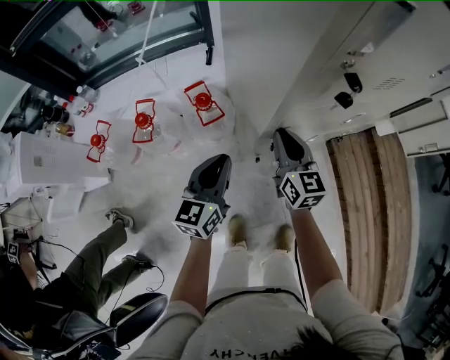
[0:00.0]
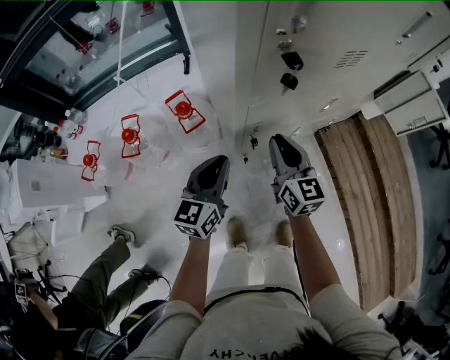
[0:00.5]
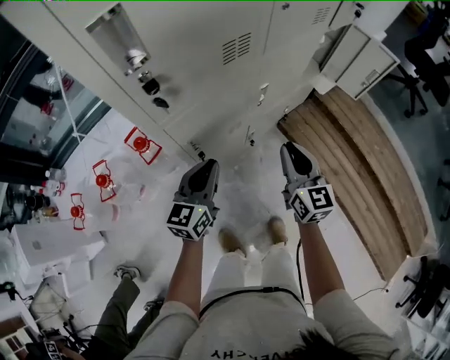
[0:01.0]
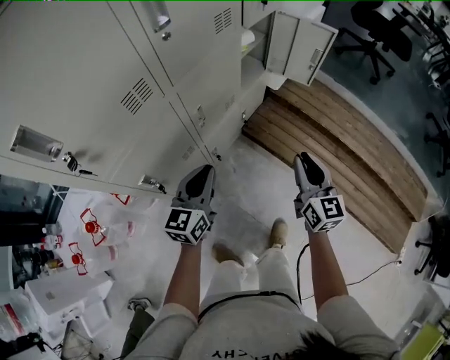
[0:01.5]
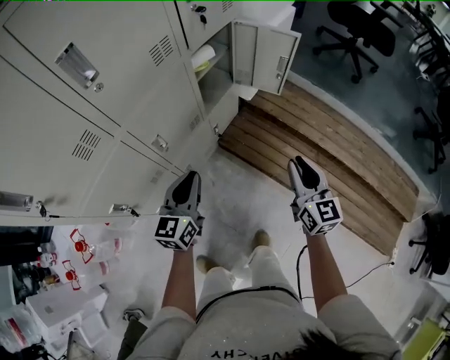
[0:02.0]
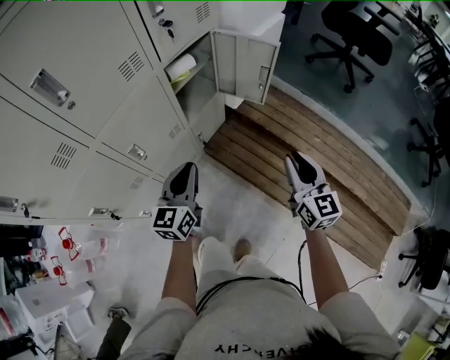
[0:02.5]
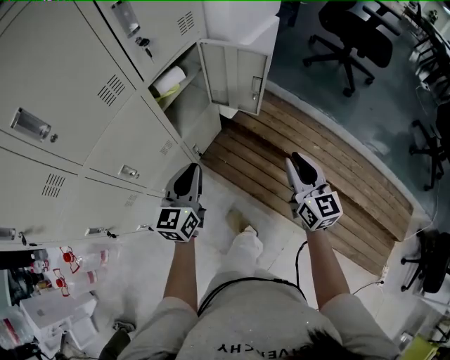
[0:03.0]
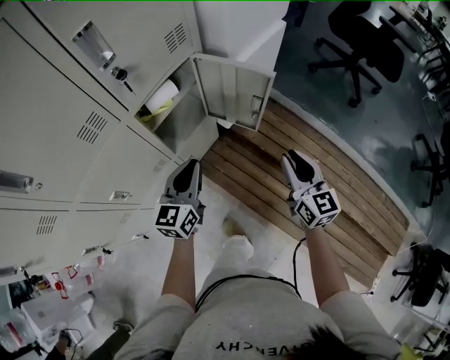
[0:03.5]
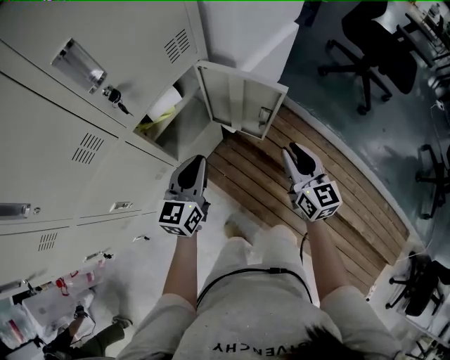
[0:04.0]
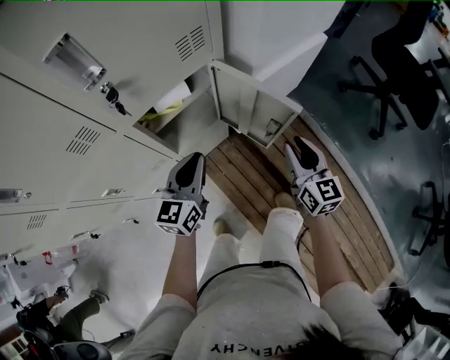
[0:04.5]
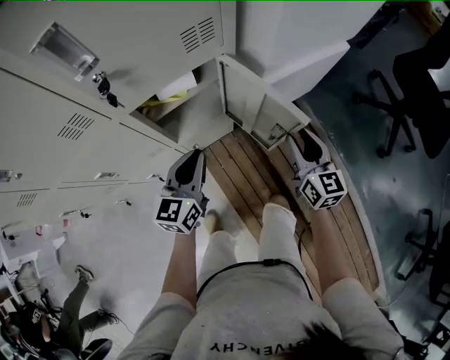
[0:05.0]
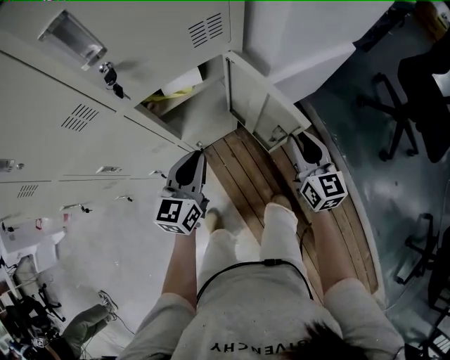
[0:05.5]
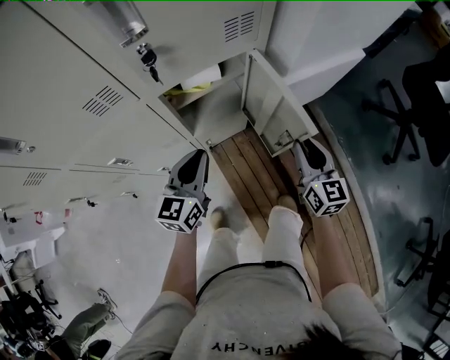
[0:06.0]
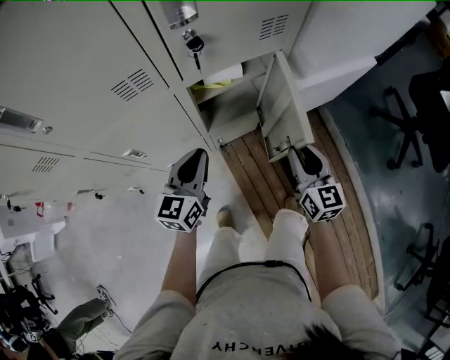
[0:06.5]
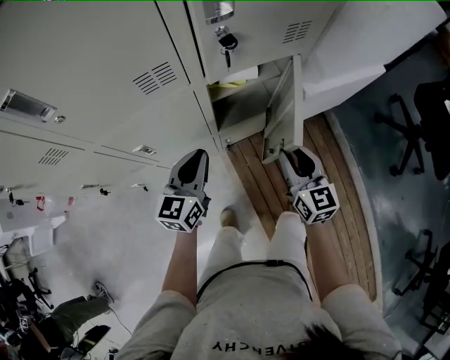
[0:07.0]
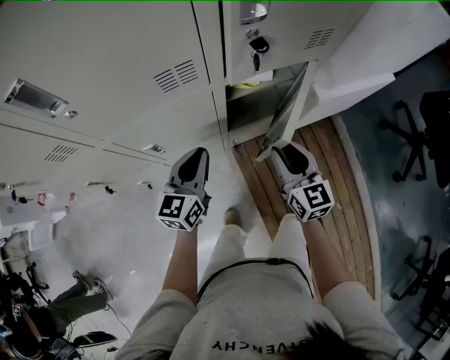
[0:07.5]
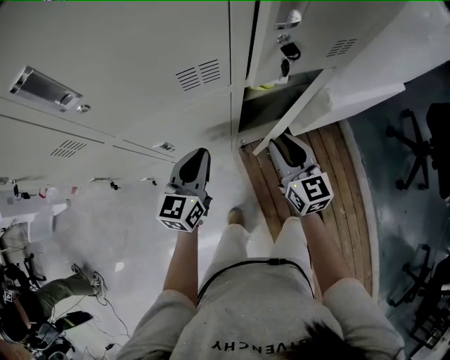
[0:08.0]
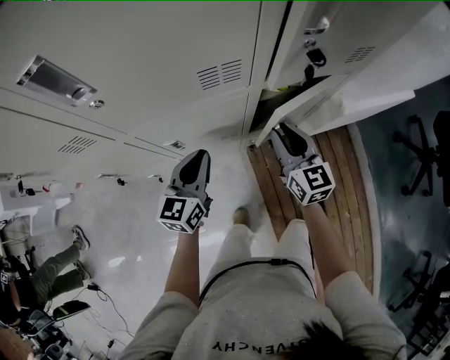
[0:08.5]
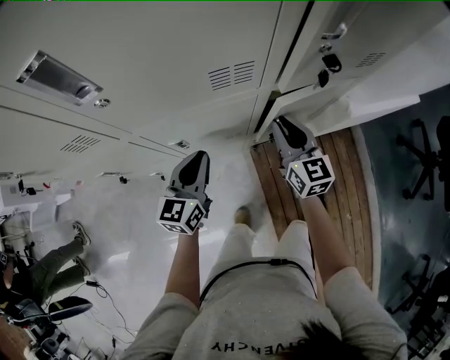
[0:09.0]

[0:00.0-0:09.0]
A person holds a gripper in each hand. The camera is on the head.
0:00.0 to 0:02.0: Both grippers are carried approximately 60 cm. The left gripper changes its angle by about 30 degrees. The right gripper swivels about 40 degrees.
0:02.0 to 0:04.5: The left gripper travels forward and to the right by approximately 35 cm. Meanwhile the right gripper heads forward, covering approximately 40 cm.
0:04.5 to 0:07.0: Both grippers travel together to the left, approximately 15 cm.
0:07.0 to 0:09.0: The right gripper is displaced to the left and forward by approximately 20 cm; the left gripper is displaced to the left by approximately 10 cm.

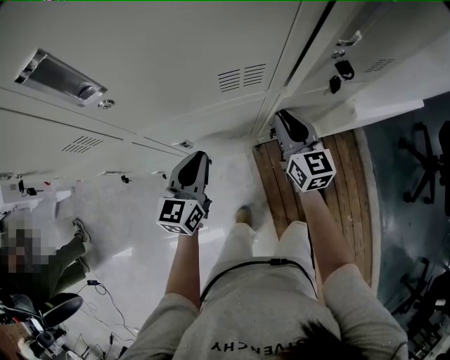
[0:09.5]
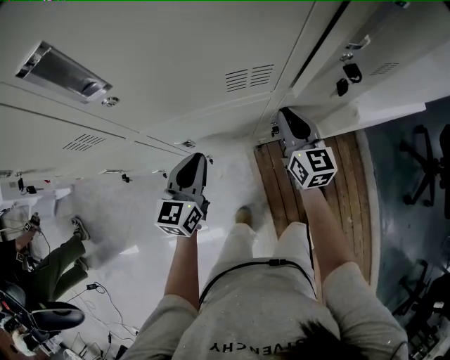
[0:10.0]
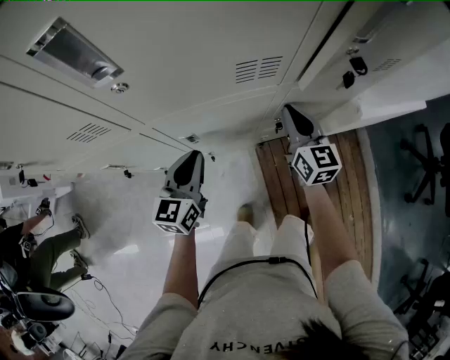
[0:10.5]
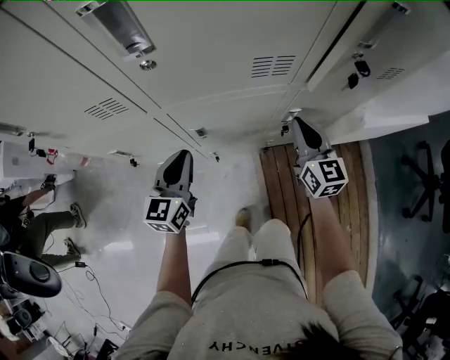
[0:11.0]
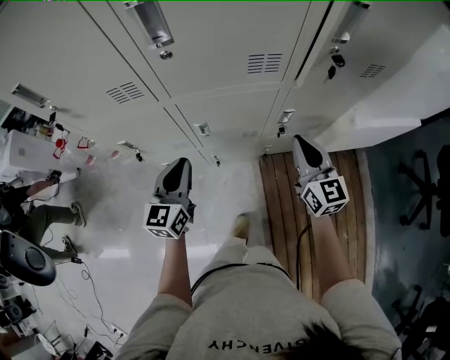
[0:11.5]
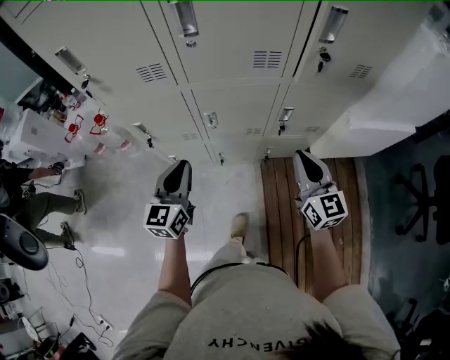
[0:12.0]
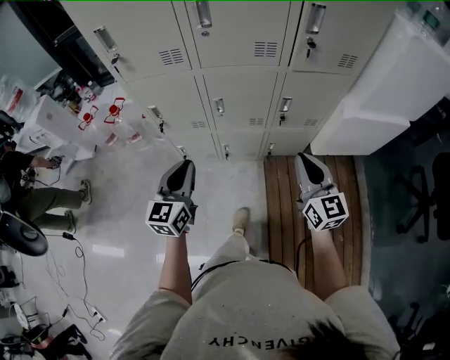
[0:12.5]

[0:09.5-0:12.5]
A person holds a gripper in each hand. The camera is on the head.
0:09.5 to 0:11.0: The left gripper travels to the left by approximately 10 cm.
0:11.0 to 0:12.5: The right gripper goes approximately 30 cm backward. The left gripper shifts roughly 30 cm backward and upward.

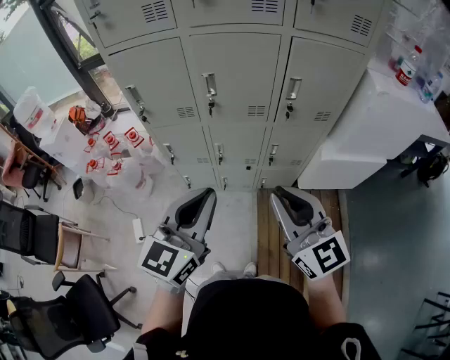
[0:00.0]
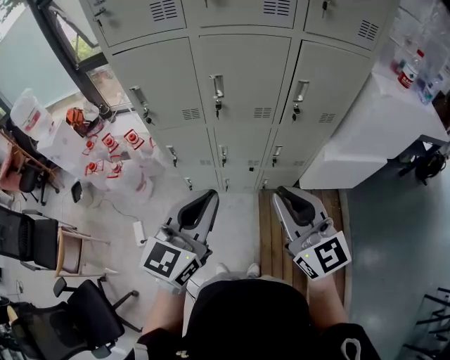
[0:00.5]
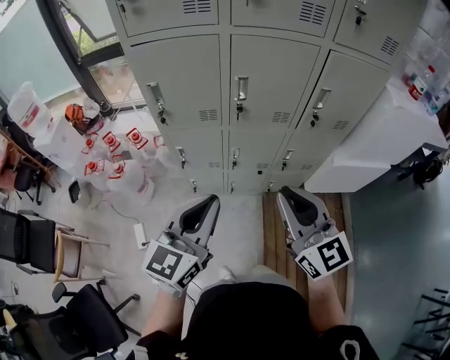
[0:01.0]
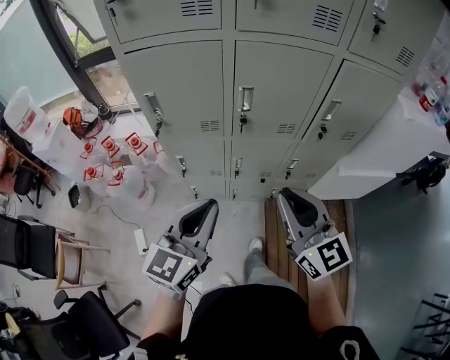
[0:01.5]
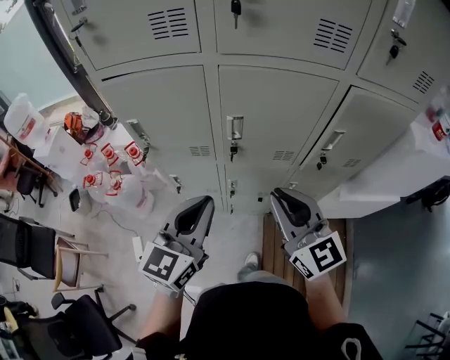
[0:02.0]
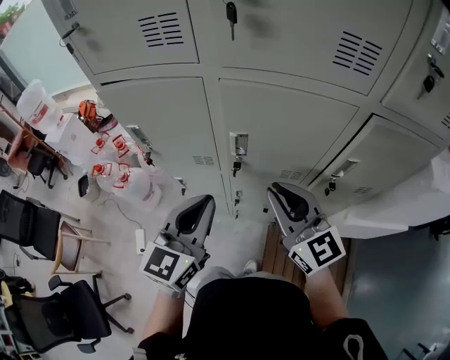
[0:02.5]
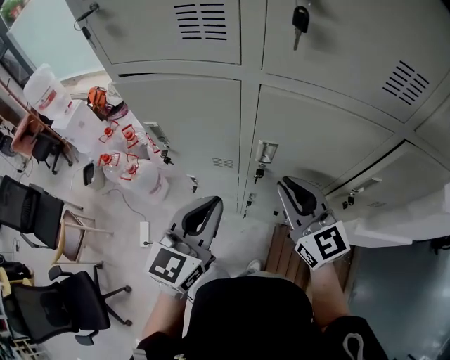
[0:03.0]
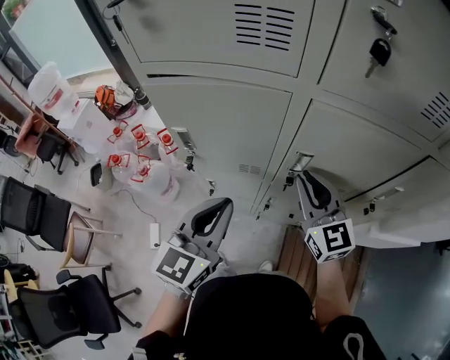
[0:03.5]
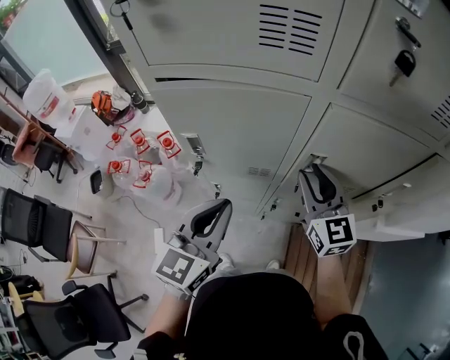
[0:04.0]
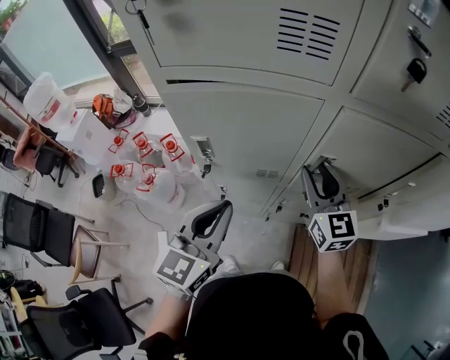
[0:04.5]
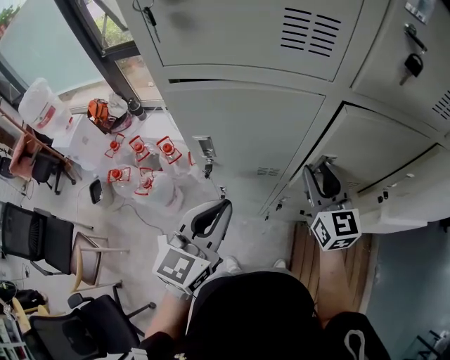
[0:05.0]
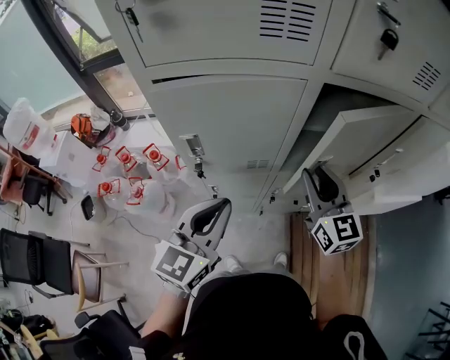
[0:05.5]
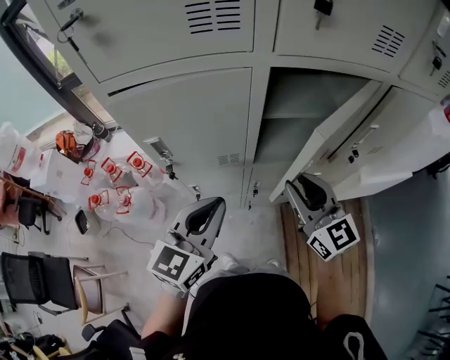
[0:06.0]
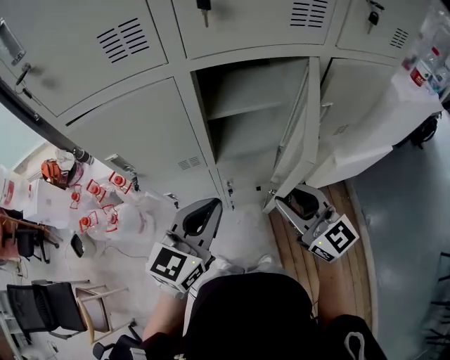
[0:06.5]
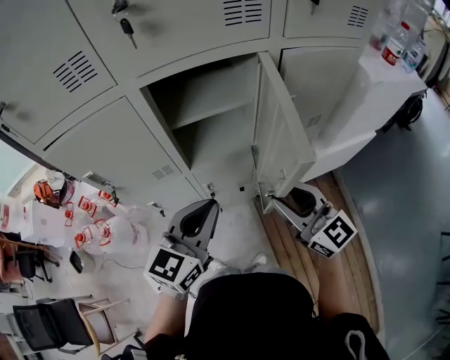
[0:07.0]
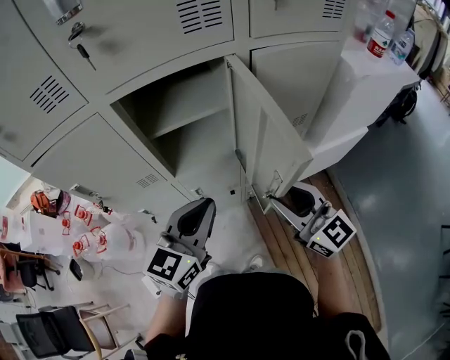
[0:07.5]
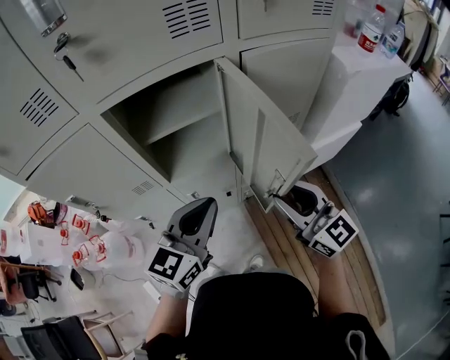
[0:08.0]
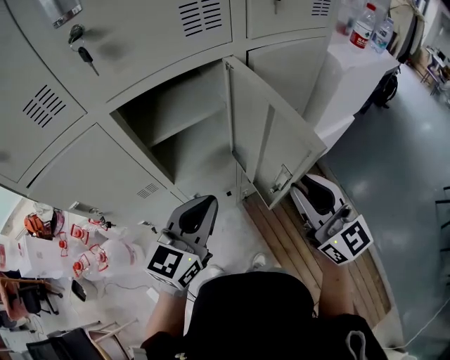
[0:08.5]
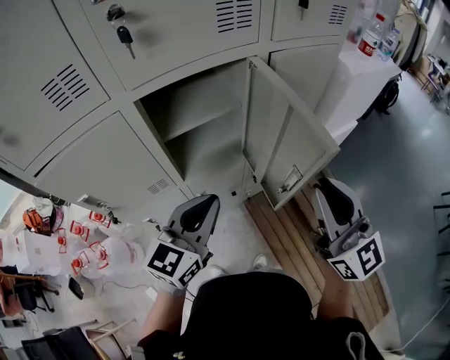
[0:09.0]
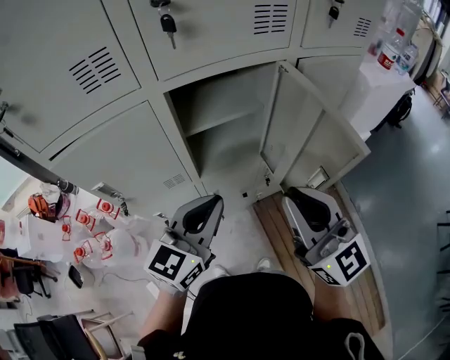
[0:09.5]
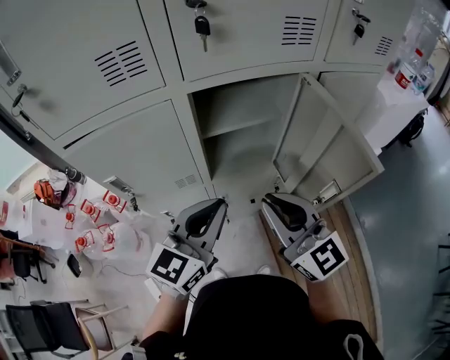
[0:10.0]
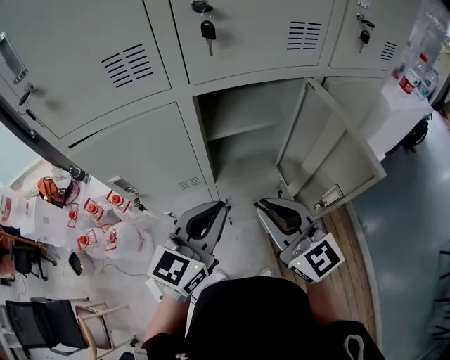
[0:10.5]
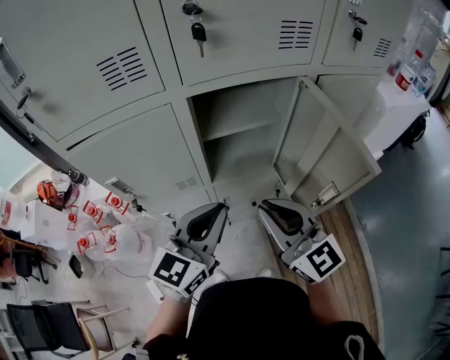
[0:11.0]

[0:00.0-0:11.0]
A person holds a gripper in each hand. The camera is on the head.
0:00.0 to 0:02.0: The right gripper is displaced forward by some 20 cm. The left gripper heads forward and to the left, covering roughly 20 cm.
0:02.0 to 0:03.5: The left gripper shifts roughly 10 cm forward and to the left, while the right gripper shifts about 15 cm forward.
0:03.5 to 0:05.5: The left gripper travels to the left by approximately 5 cm.
0:05.5 to 0:07.5: The right gripper heads to the right and backward, covering about 25 cm, while the left gripper goes some 25 cm to the right.
0:07.5 to 0:09.0: The left gripper is displaced to the left by approximately 5 cm. Meanwhile the right gripper is displaced upward by some 10 cm, and rotates about 30 degrees.
0:09.0 to 0:11.0: The right gripper heads to the left, covering some 15 cm, and turns by about 20 degrees. The left gripper travels to the left by some 5 cm.

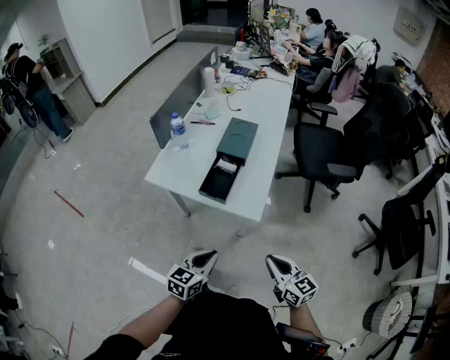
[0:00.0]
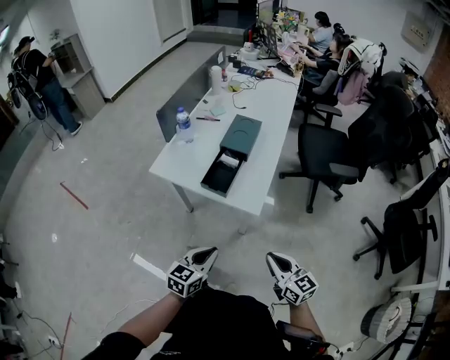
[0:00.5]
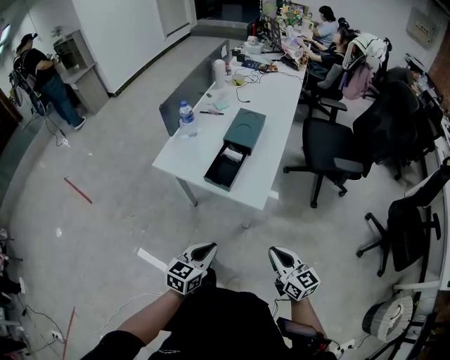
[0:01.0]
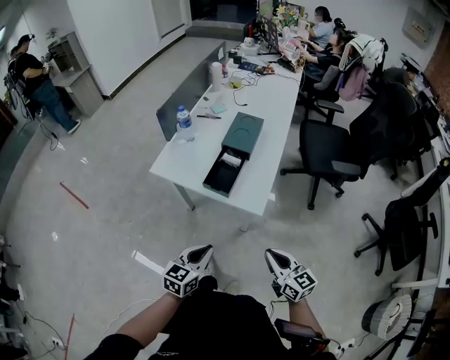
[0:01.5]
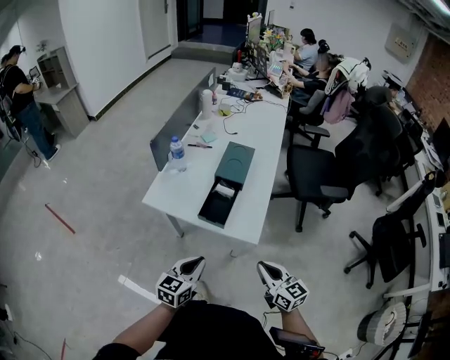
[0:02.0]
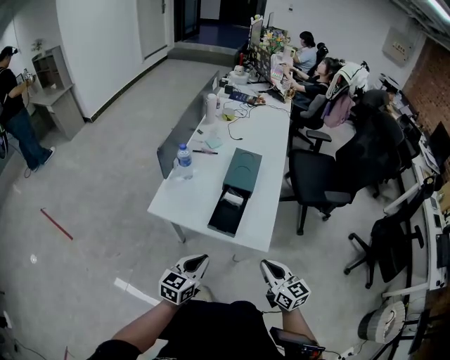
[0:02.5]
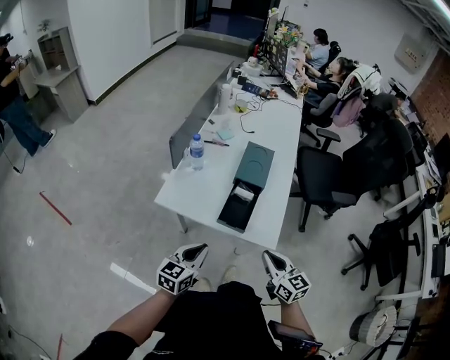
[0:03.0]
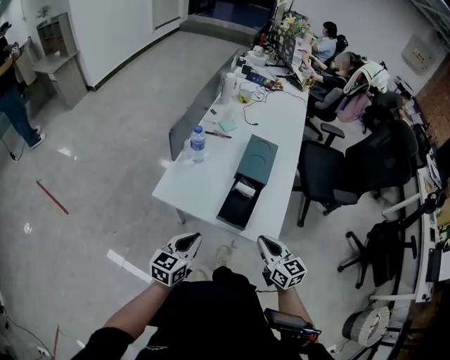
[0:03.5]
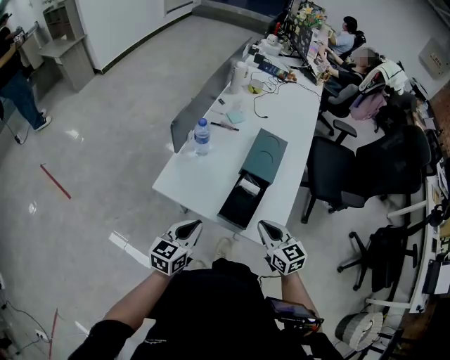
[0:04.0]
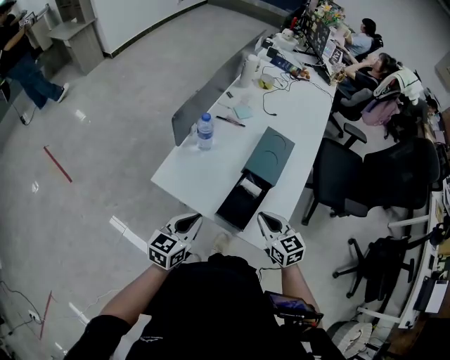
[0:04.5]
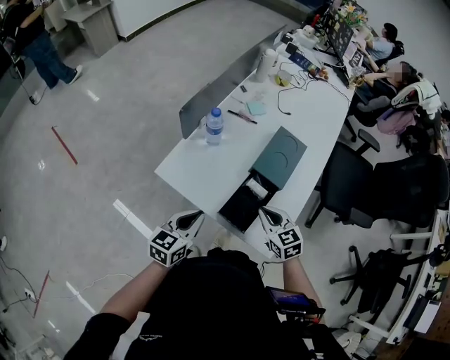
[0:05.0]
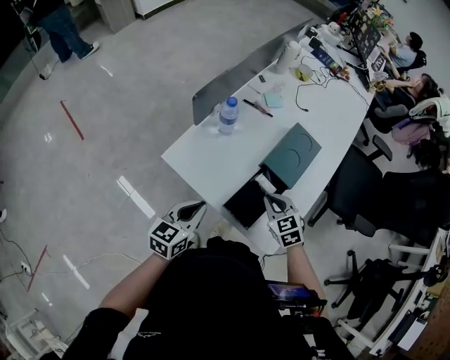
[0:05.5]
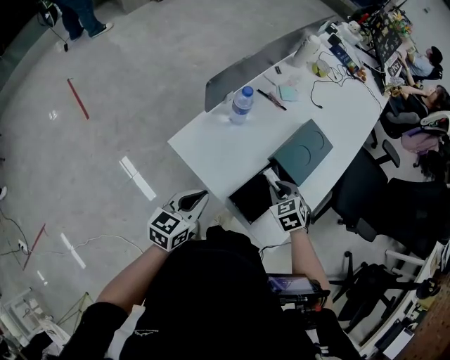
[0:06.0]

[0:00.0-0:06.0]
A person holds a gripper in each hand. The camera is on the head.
0:00.0 to 0:02.0: The right gripper moves forward, approximately 5 cm. The left gripper goes some 10 cm forward and to the left.
0:02.0 to 0:04.0: The two grippers go about 20 cm forward and to the left.
0:04.0 to 0:06.0: The left gripper ends up roughly 5 cm from where it was. The right gripper goes about 20 cm forward and downward, and points its fingers approximately 30 degrees further downward.
